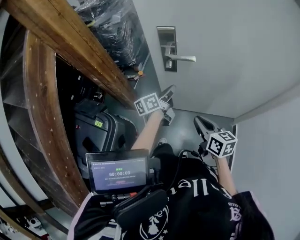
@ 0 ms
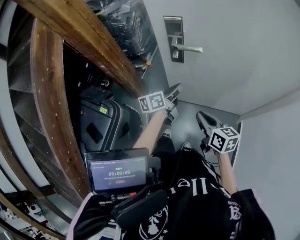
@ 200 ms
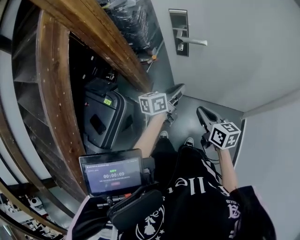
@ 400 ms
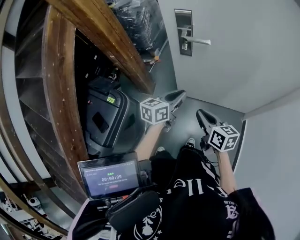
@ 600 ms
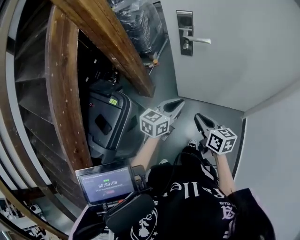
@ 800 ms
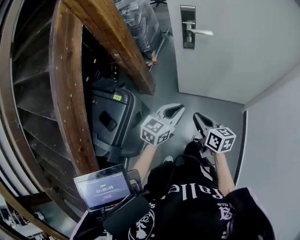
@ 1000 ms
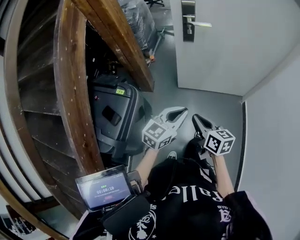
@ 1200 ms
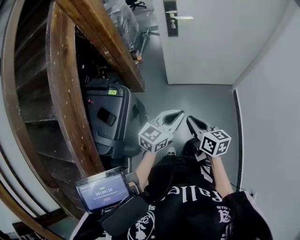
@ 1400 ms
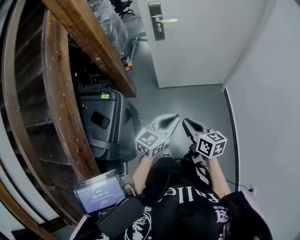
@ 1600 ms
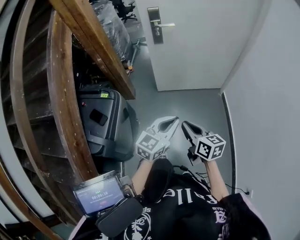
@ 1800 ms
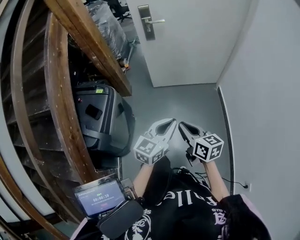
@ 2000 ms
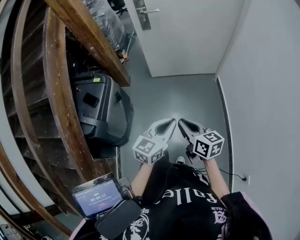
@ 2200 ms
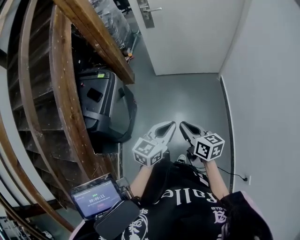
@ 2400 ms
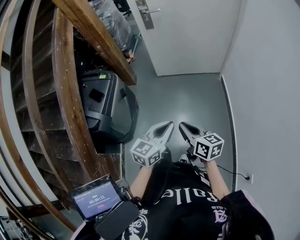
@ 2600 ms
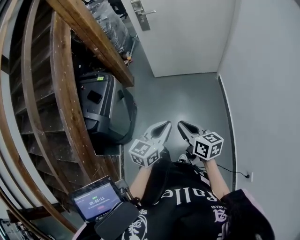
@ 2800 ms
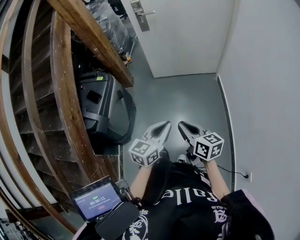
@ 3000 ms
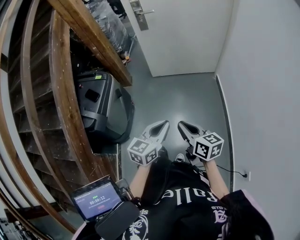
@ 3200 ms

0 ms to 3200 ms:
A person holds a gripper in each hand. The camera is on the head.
0 ms to 1600 ms: The two grippers go approximately 40 cm backward. The left gripper rotates around the line of its fingers by roughly 50 degrees, clockwise from behind.
1600 ms to 3200 ms: Both grippers travel together backward and to the right, some 30 cm.

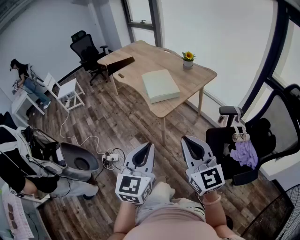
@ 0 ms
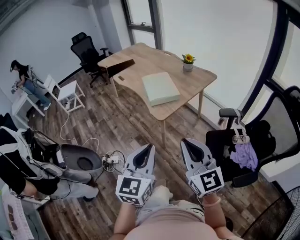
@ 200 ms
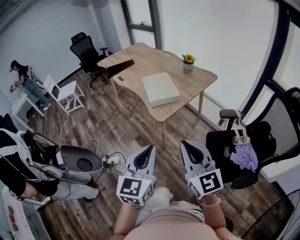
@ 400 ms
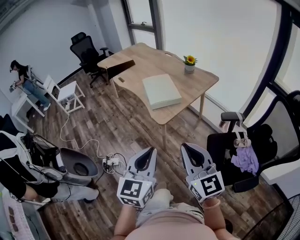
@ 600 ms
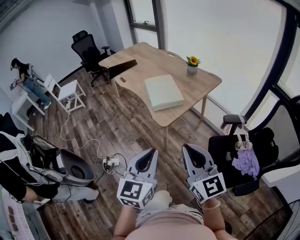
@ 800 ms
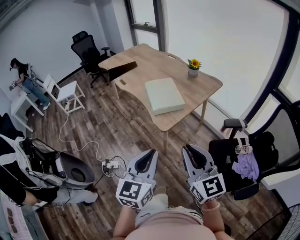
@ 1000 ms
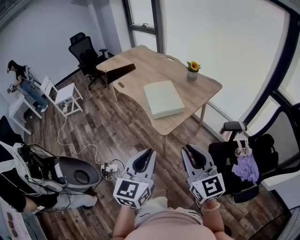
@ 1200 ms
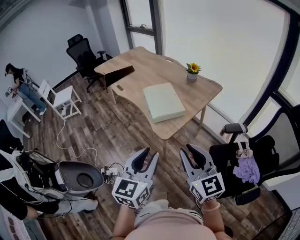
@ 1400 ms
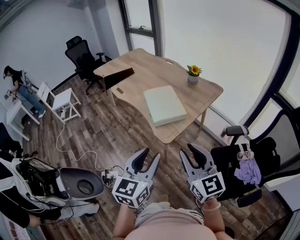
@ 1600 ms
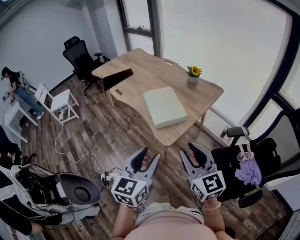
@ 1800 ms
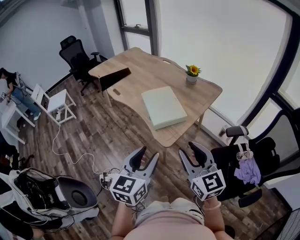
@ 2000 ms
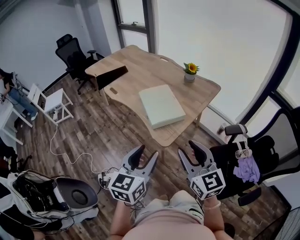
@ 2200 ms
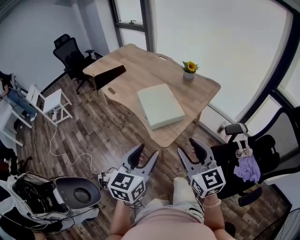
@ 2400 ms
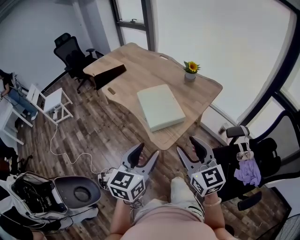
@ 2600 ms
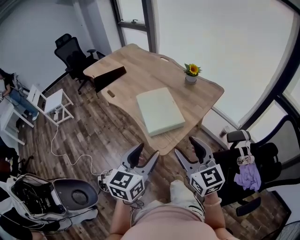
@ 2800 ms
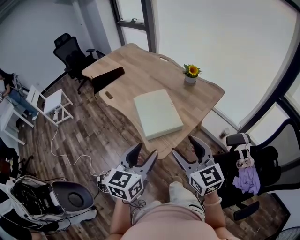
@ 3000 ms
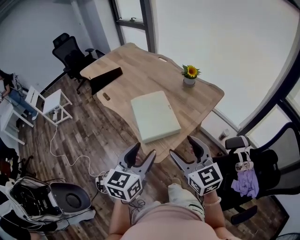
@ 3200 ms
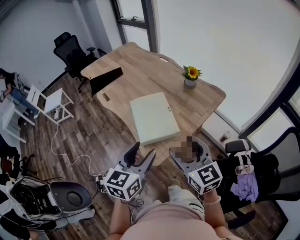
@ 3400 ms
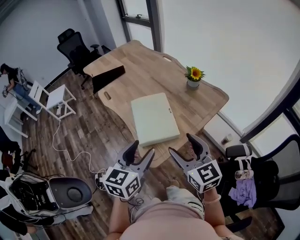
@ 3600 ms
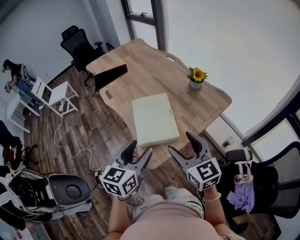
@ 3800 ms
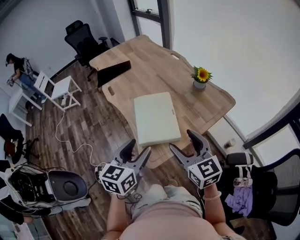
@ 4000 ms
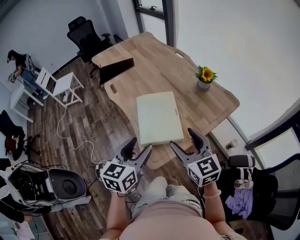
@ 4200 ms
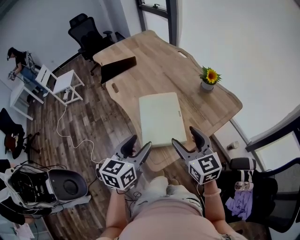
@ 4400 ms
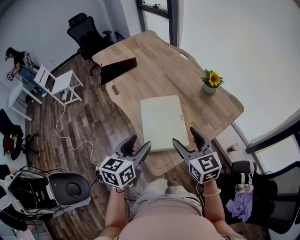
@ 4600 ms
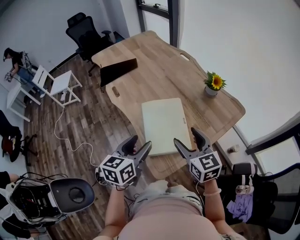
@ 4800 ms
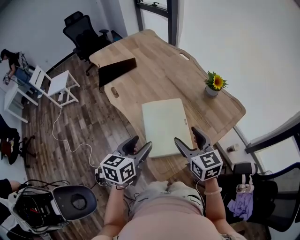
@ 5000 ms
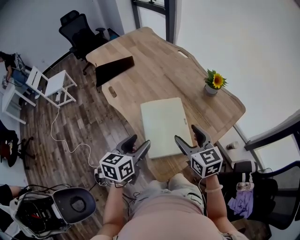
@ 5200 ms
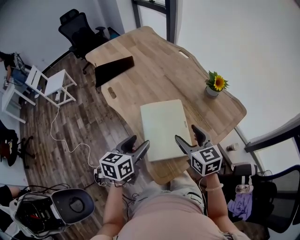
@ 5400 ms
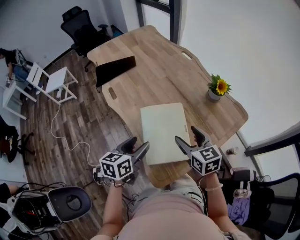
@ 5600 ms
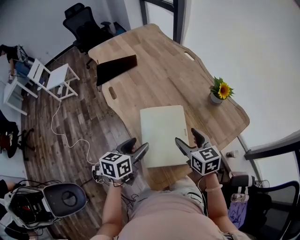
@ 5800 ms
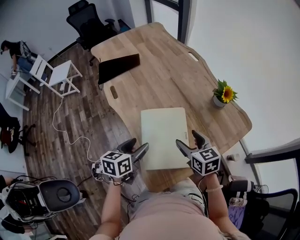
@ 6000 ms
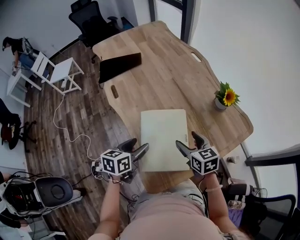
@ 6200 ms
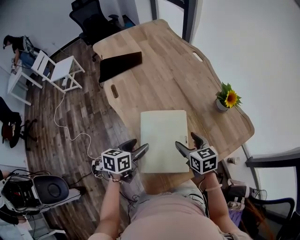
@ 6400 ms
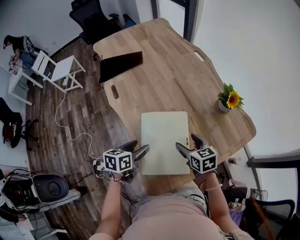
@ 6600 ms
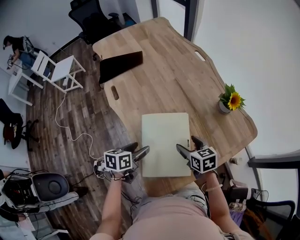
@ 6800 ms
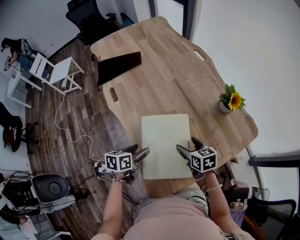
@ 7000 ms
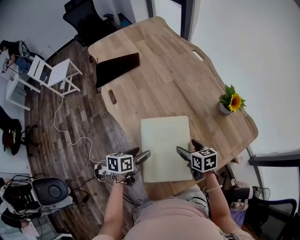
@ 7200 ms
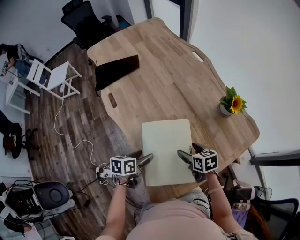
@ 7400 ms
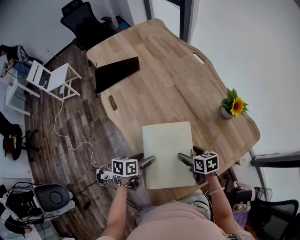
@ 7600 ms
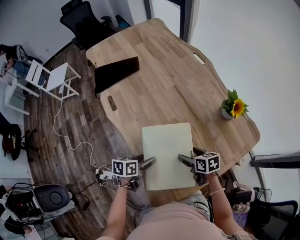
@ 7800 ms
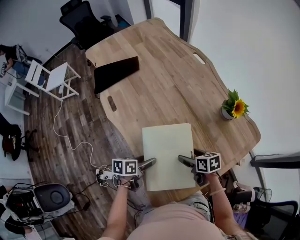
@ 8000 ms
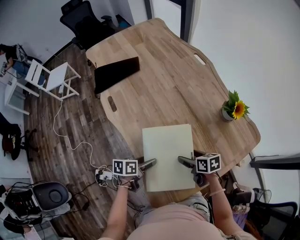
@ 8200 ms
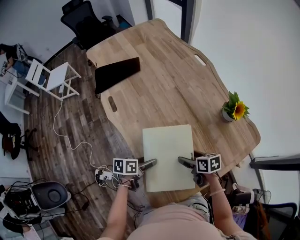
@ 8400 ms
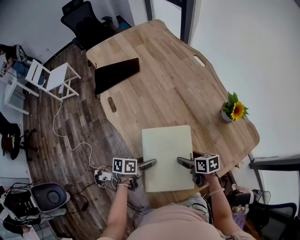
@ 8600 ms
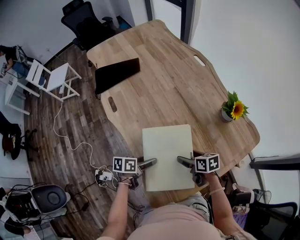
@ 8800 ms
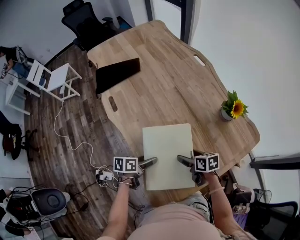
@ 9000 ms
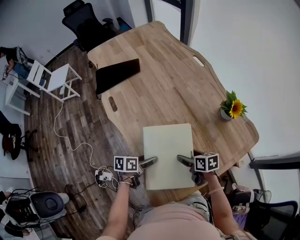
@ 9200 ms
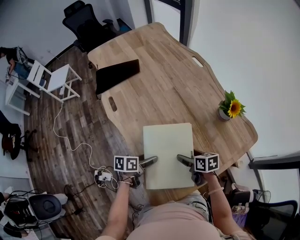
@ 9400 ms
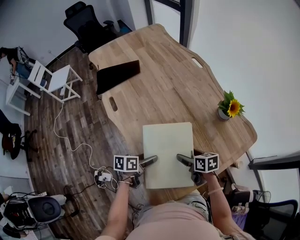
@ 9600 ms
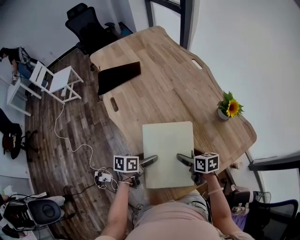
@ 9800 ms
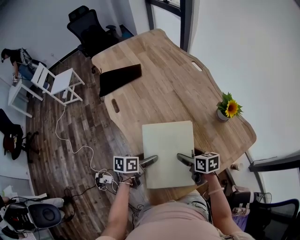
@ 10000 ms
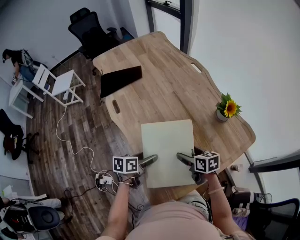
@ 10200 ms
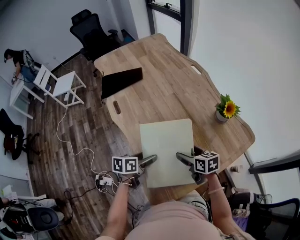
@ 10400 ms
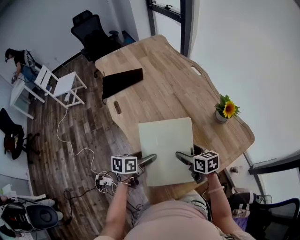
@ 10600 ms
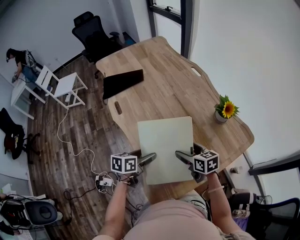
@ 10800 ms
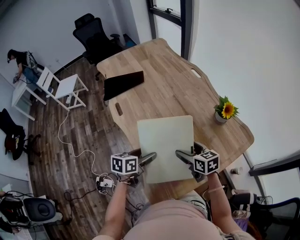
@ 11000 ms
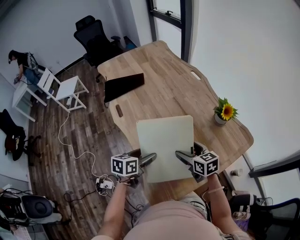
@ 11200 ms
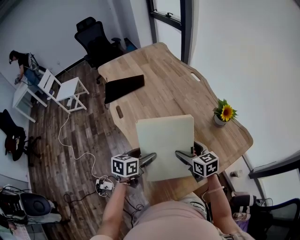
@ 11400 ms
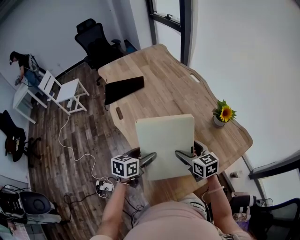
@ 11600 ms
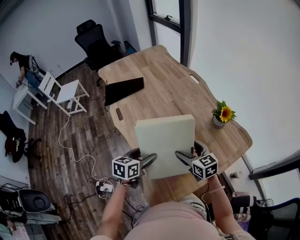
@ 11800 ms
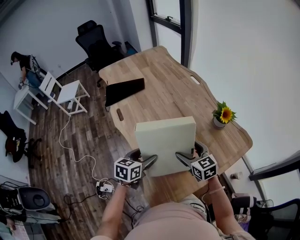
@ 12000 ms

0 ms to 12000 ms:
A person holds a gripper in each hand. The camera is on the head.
0 ms to 1600 ms: Both grippers move forward, roughly 20 cm. The left gripper opens up.
1600 ms to 3000 ms: Both grippers travel together forward, about 15 cm. The right gripper opens its fingers.
3000 ms to 4400 ms: Both grippers travel together forward, some 15 cm.
4400 ms to 6000 ms: The two grippers go some 20 cm forward and downward. The right gripper turns by roughly 20 degrees. Meanwhile the left gripper turns by approximately 20 degrees.
6000 ms to 7600 ms: Both grippers travel together downward, about 15 cm. The left gripper rotates some 20 degrees. The right gripper changes its angle by some 30 degrees.
7600 ms to 9000 ms: There are only small adjustments of the grippers.
9000 ms to 10400 ms: The grippers both shift upward by approximately 10 cm.
10400 ms to 12000 ms: The two grippers go approximately 5 cm upward. The right gripper rotates approximately 30 degrees. Meanwhile the left gripper turns by about 30 degrees.

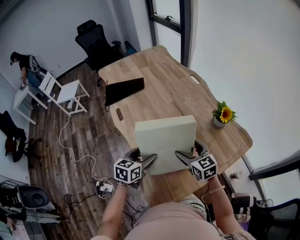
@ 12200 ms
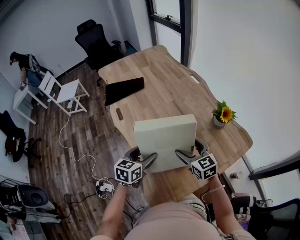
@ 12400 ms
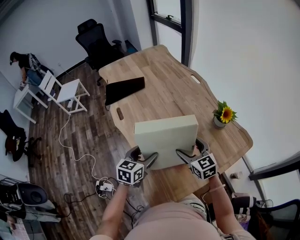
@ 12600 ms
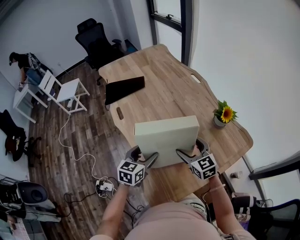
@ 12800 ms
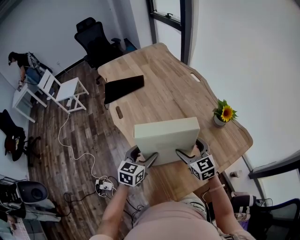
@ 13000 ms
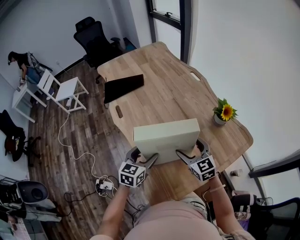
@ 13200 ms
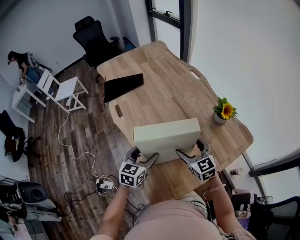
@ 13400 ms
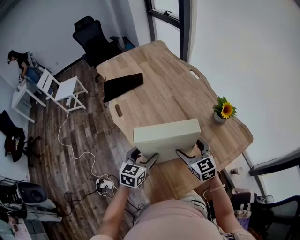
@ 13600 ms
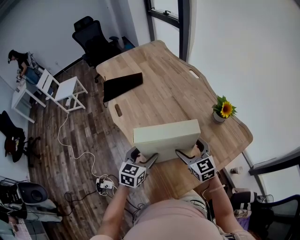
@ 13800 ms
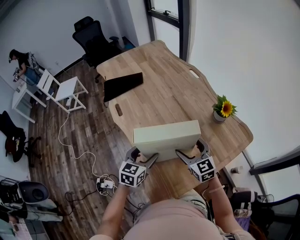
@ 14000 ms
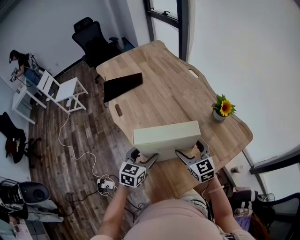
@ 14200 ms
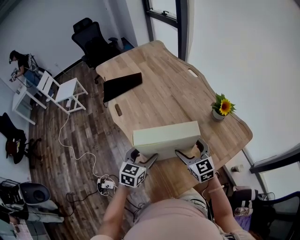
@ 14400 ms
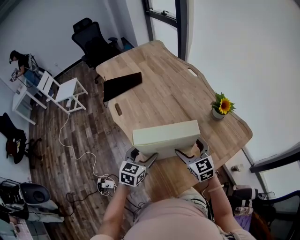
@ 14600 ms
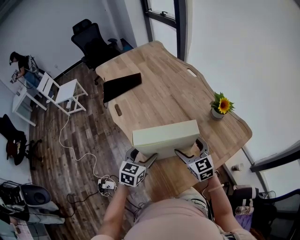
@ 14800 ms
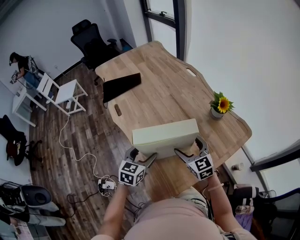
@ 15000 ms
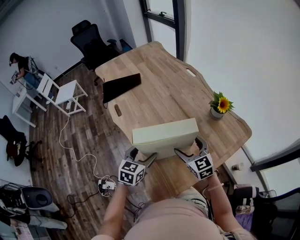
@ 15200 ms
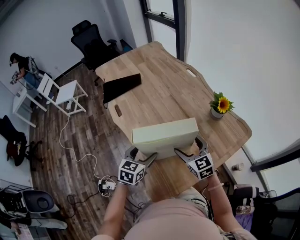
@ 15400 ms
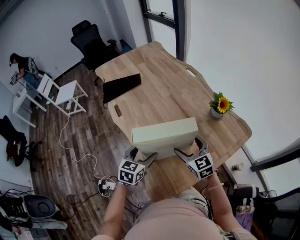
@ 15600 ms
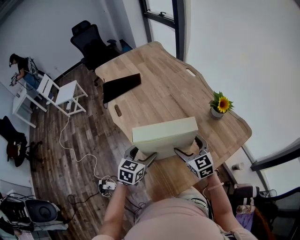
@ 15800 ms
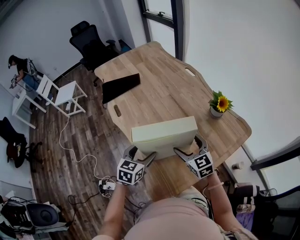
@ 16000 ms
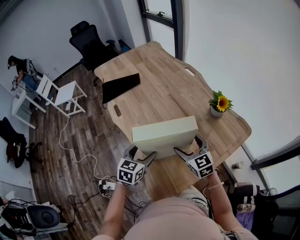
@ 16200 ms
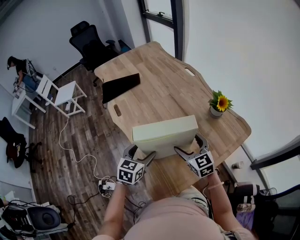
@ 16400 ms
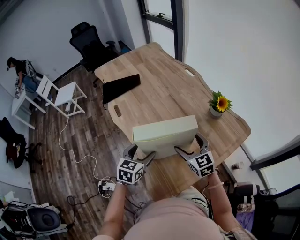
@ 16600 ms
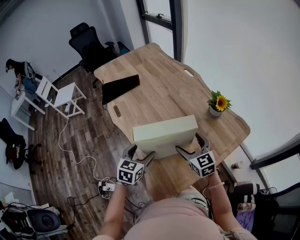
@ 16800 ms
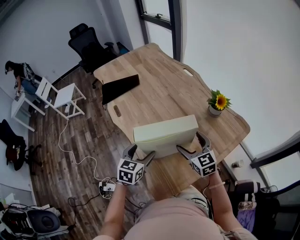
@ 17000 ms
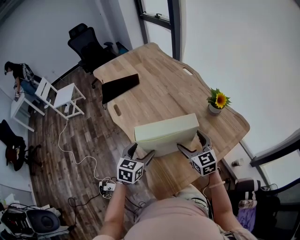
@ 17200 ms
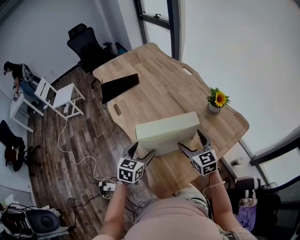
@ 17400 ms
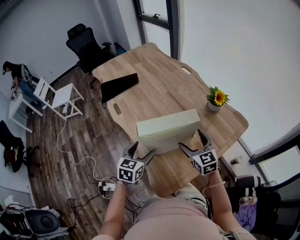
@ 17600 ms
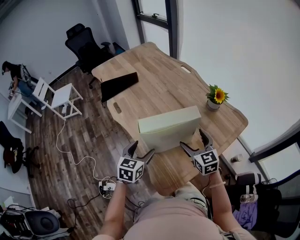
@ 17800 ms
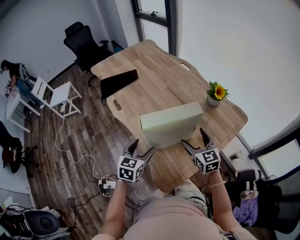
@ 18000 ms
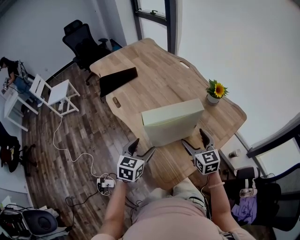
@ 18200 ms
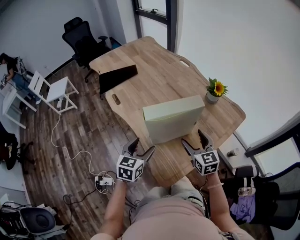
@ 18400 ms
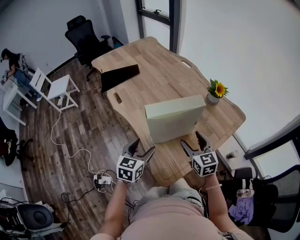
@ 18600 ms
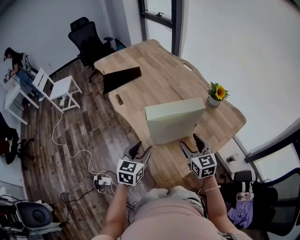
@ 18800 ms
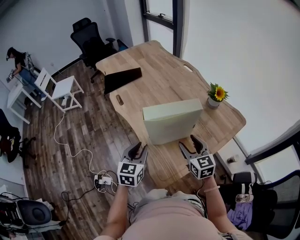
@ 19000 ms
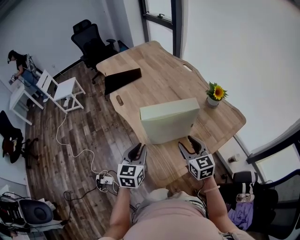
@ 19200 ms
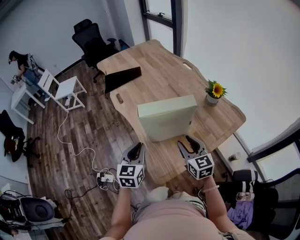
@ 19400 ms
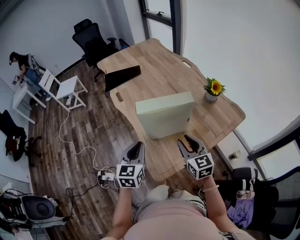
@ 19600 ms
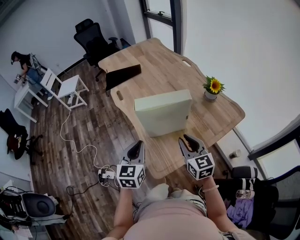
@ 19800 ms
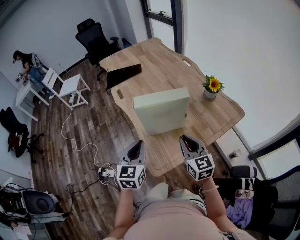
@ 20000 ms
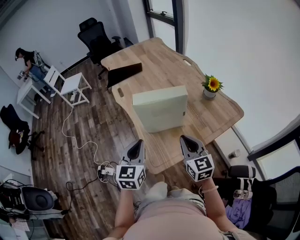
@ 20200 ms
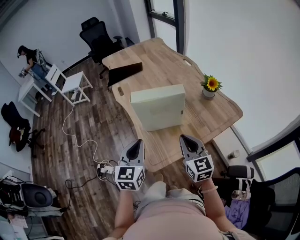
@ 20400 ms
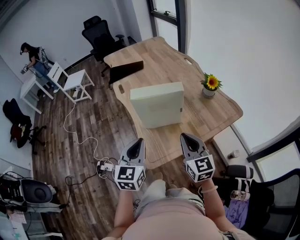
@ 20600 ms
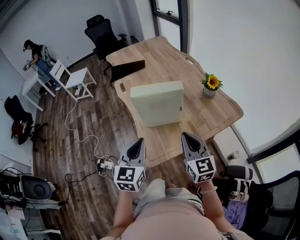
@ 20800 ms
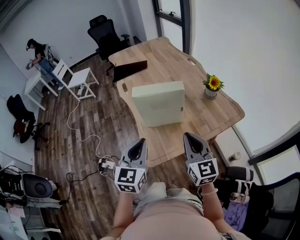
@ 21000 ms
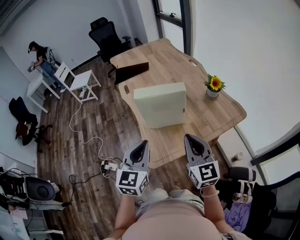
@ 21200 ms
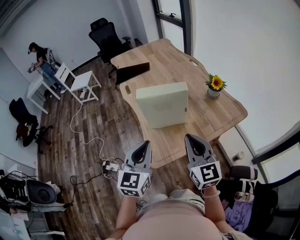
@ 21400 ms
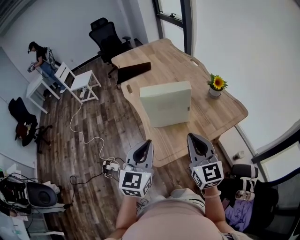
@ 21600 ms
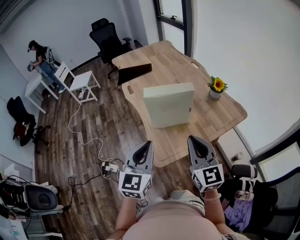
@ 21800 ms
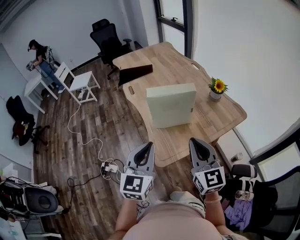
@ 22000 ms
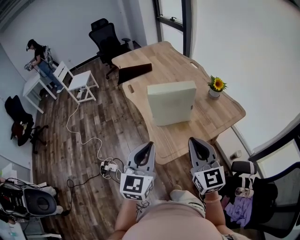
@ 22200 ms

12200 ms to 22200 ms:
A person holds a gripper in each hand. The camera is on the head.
12200 ms to 15000 ms: The grippers stay close to where they were, moving slightly.
15000 ms to 16400 ms: Neither gripper changes place.
16400 ms to 18000 ms: The right gripper shifts approximately 5 cm backward, while the left gripper shifts by about 5 cm.
18000 ms to 19400 ms: The grippers both shift backward by some 5 cm. The right gripper closes its fingers; the left gripper closes up.
19400 ms to 20800 ms: Both grippers travel together backward, upward and to the right, some 15 cm. The right gripper closes its fingers.
20800 ms to 22200 ms: The right gripper is displaced upward, backward and to the left by about 10 cm. Meanwhile the left gripper travels backward and upward by about 10 cm.
